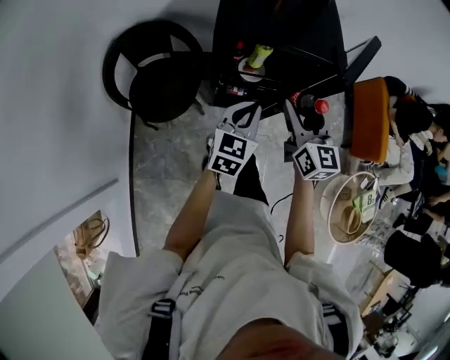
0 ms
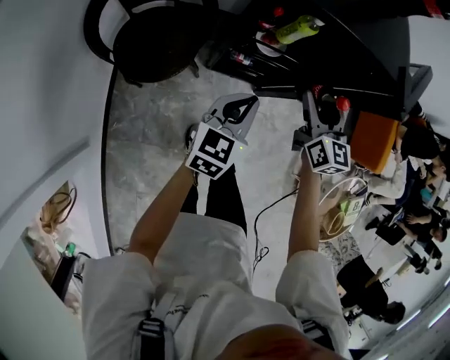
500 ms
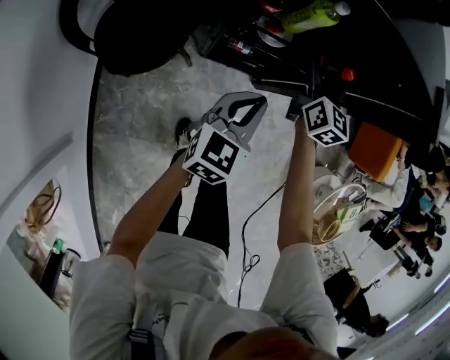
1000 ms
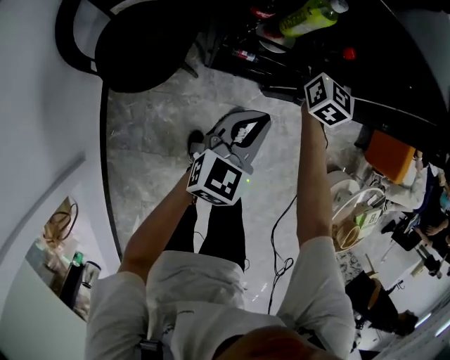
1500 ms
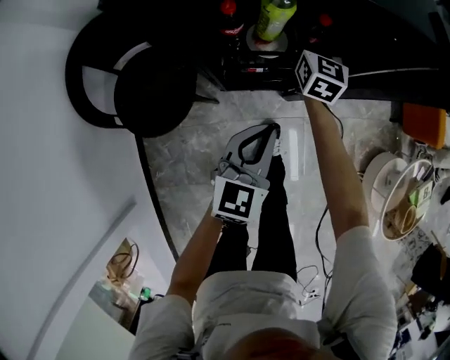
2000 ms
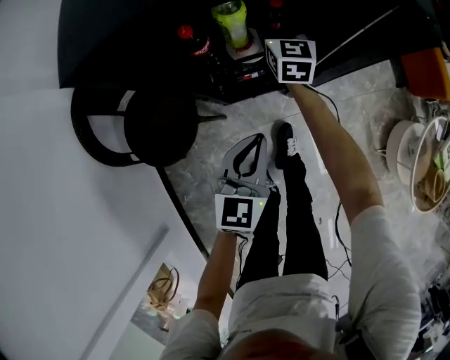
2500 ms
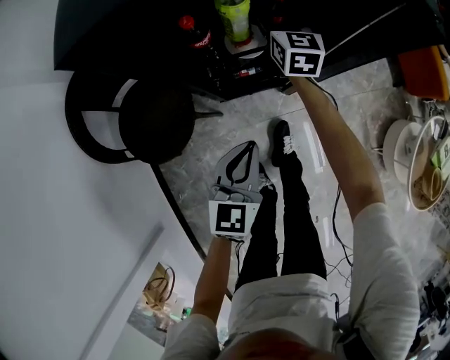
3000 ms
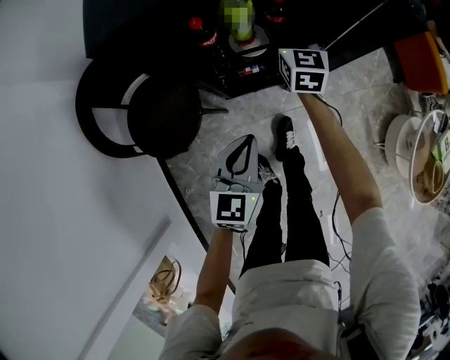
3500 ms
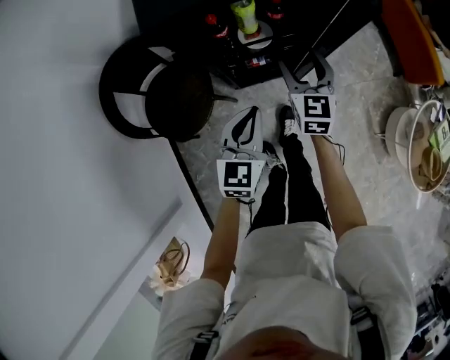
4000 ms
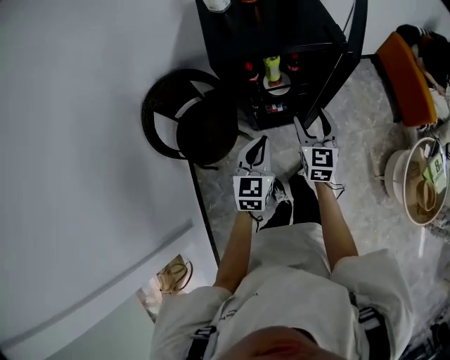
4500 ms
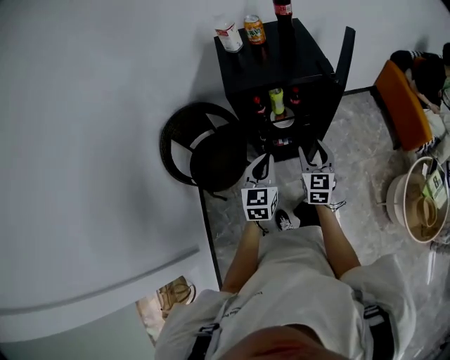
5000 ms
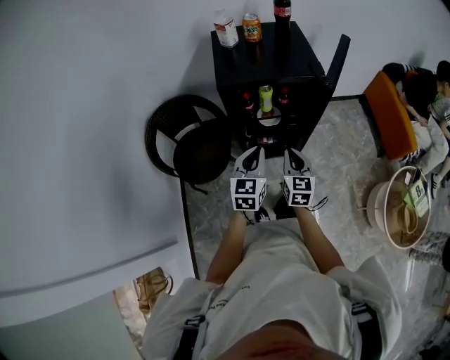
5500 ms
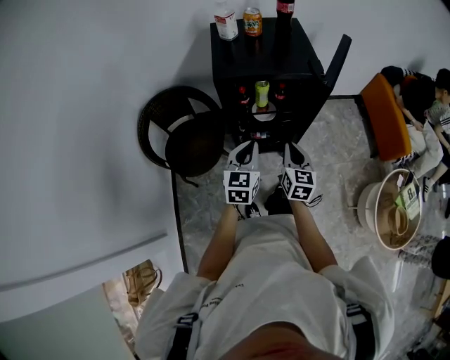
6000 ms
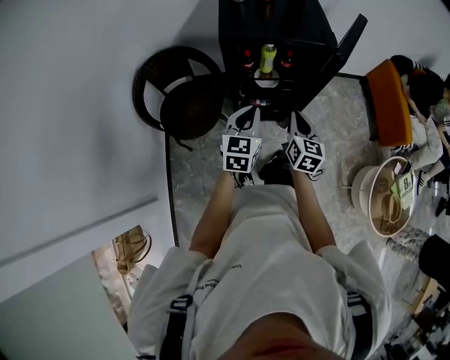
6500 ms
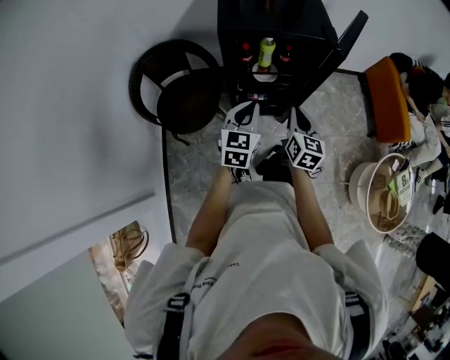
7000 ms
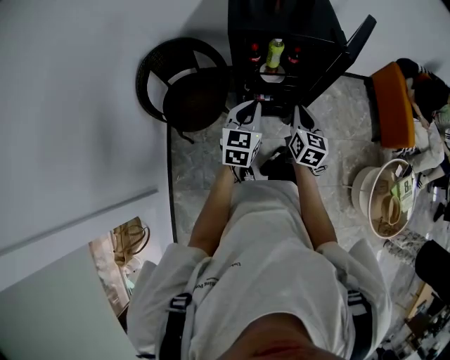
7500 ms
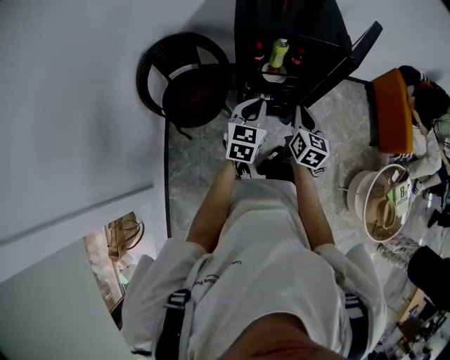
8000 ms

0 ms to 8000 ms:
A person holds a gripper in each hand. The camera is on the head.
0 ms to 2000 ms: The left gripper heads downward, covering some 20 cm; the right gripper moves downward and forward, approximately 40 cm, and rotates some 20 degrees.
2000 ms to 4000 ms: The right gripper goes approximately 20 cm backward and upward, while the left gripper is displaced upward and backward by about 10 cm.
4000 ms to 6000 ms: The left gripper shifts roughly 15 cm upward; the right gripper shifts about 15 cm backward and upward, and closes up.
6000 ms to 8000 ms: There are only small adjustments of the grippers.

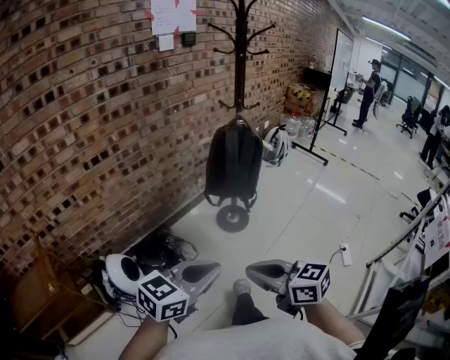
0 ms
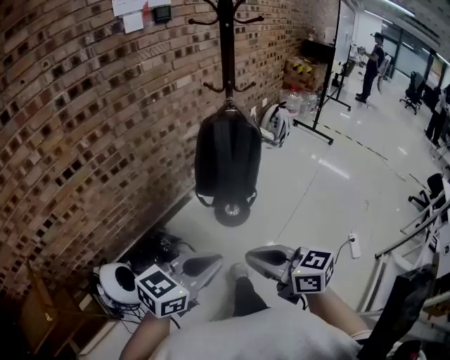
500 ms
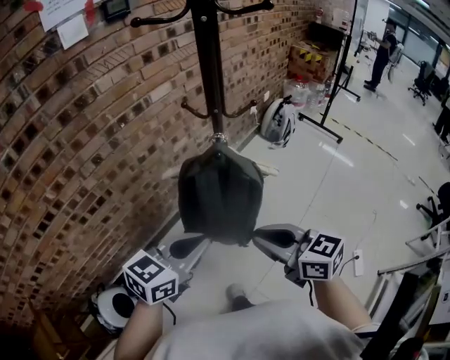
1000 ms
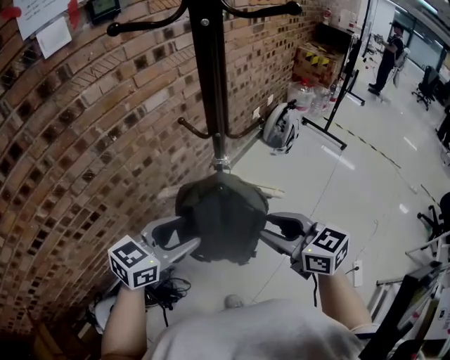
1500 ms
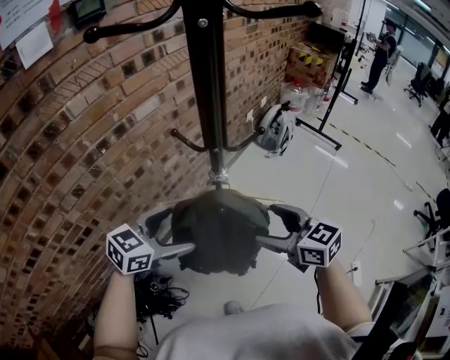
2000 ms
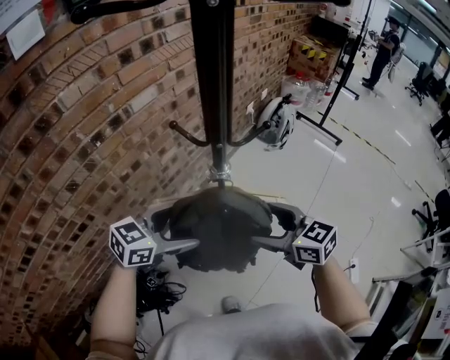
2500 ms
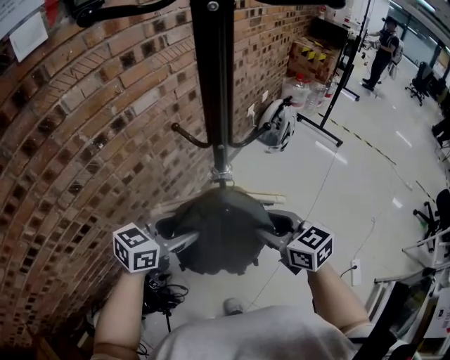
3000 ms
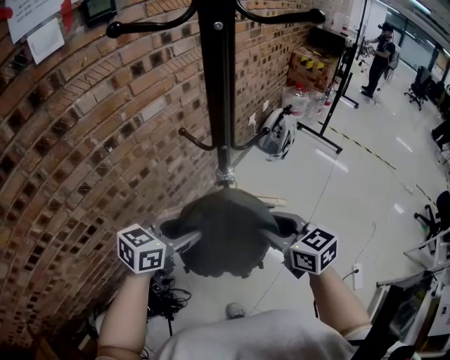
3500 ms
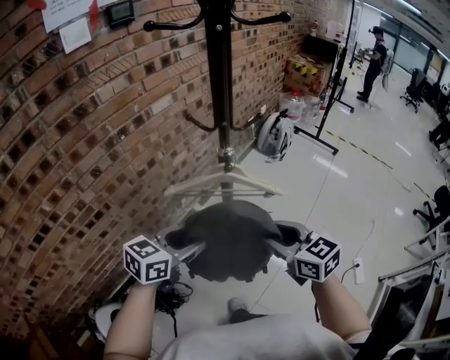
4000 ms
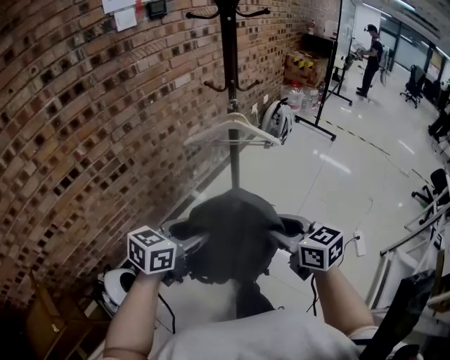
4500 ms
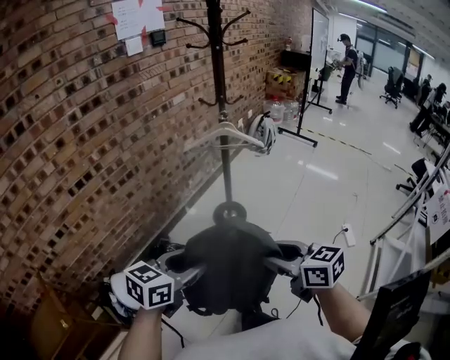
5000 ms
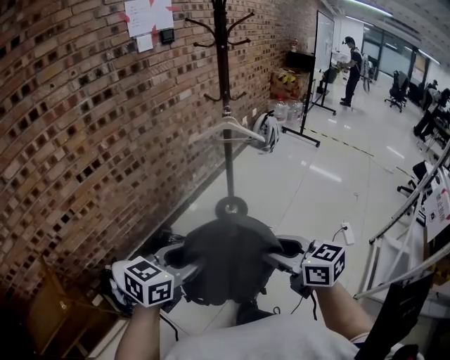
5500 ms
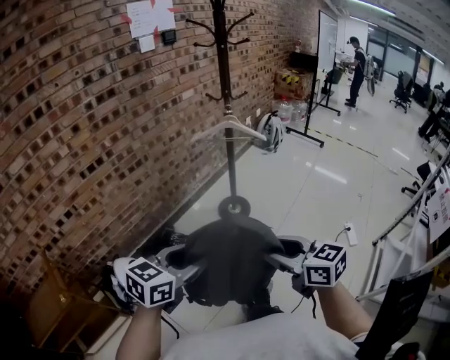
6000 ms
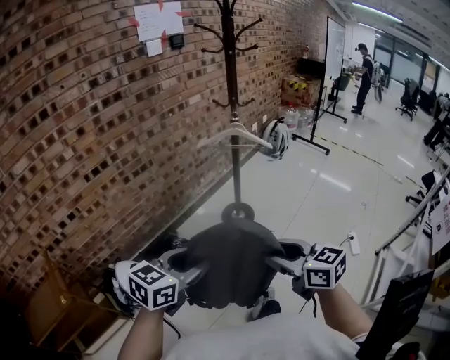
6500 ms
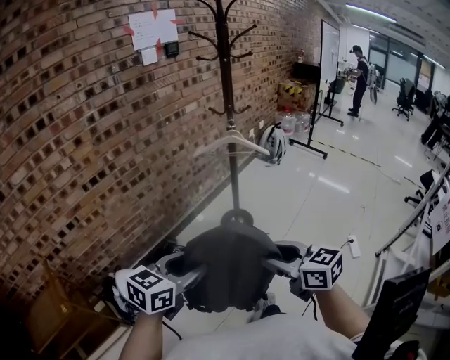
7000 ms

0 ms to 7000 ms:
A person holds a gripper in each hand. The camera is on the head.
0 ms to 2000 ms: The two grippers travel together, forward, roughly 70 cm. The left gripper opens. The right gripper opens up.
2000 ms to 3500 ms: The right gripper closes up. Meanwhile the left gripper closes up.
3500 ms to 5000 ms: The pair of grippers is taken backward, approximately 50 cm.

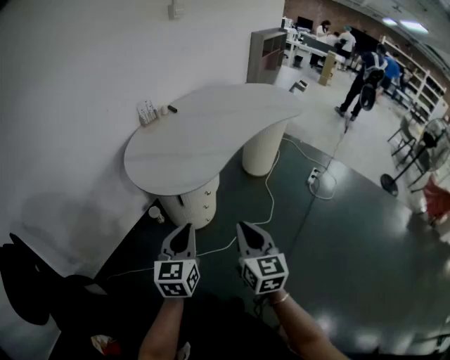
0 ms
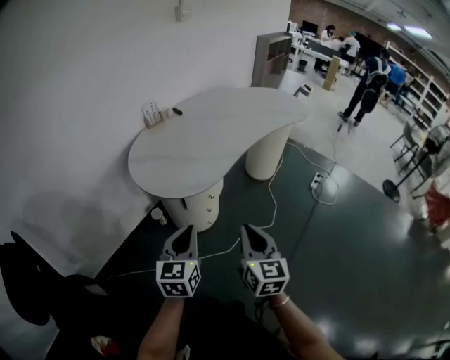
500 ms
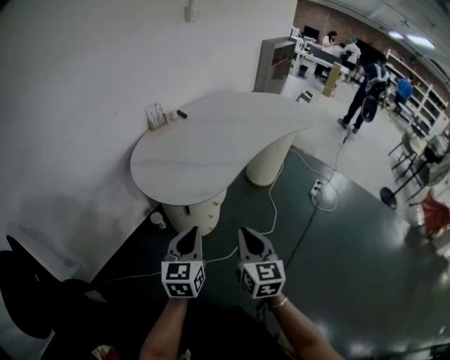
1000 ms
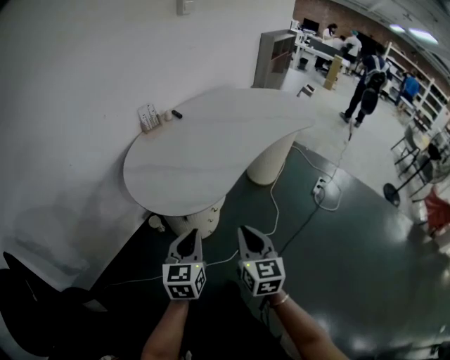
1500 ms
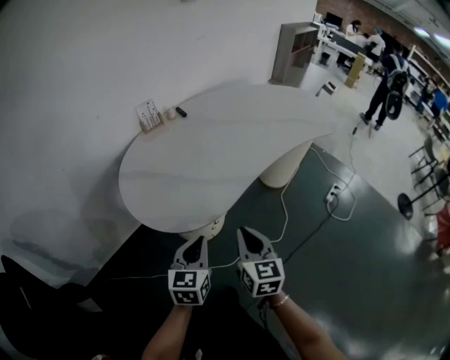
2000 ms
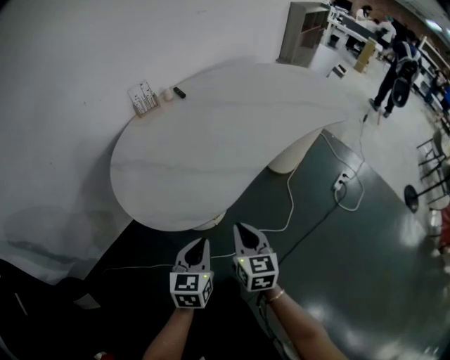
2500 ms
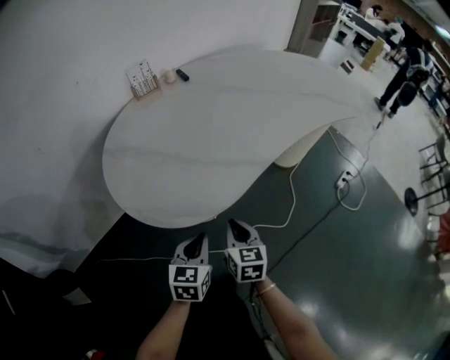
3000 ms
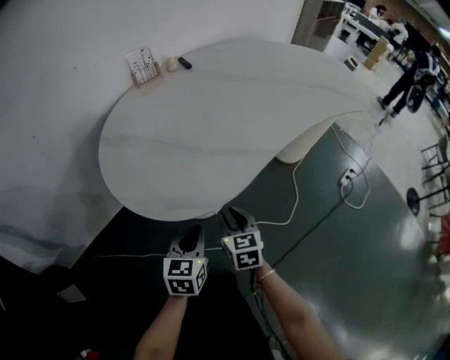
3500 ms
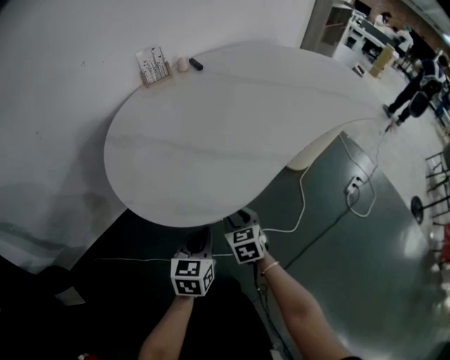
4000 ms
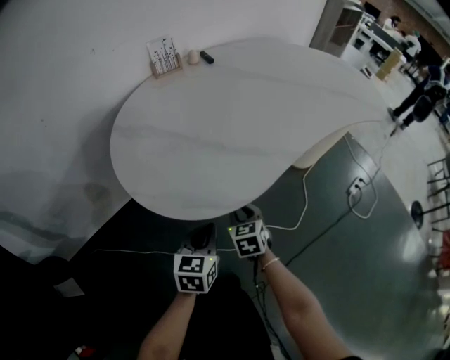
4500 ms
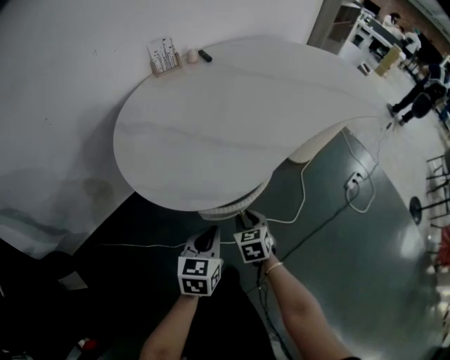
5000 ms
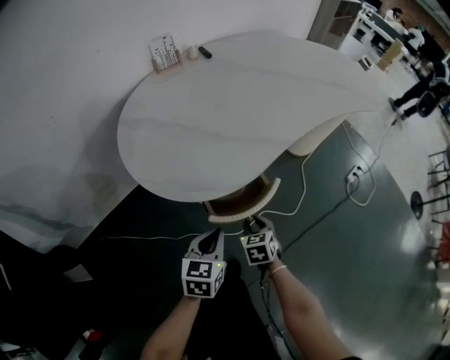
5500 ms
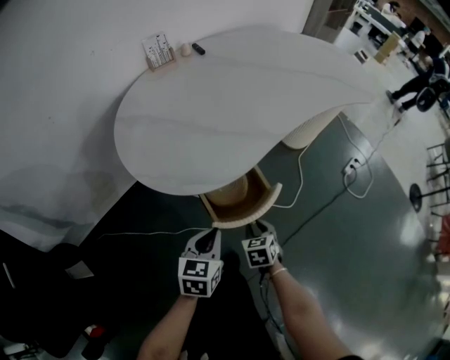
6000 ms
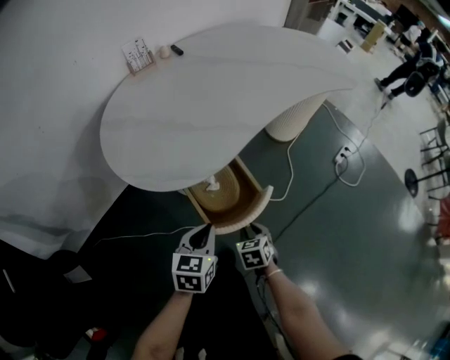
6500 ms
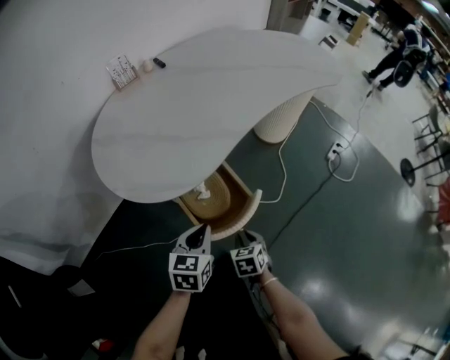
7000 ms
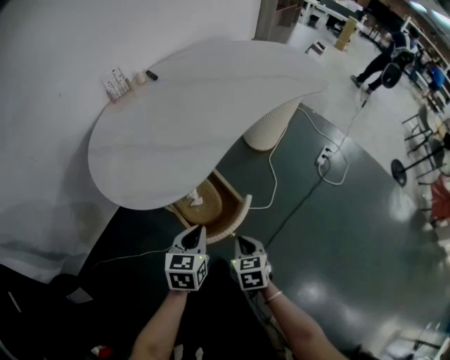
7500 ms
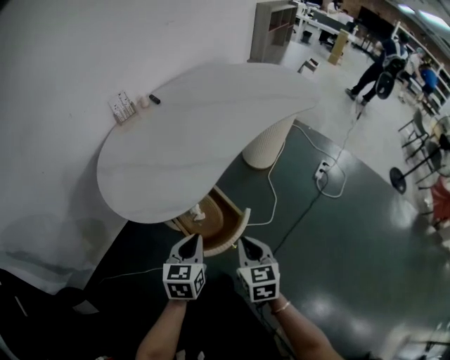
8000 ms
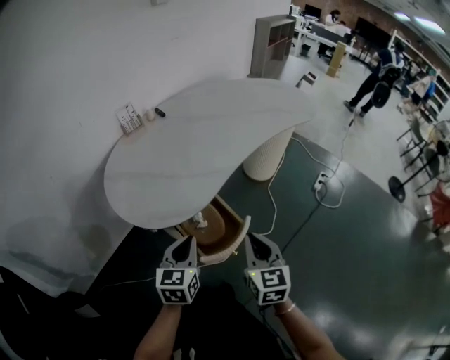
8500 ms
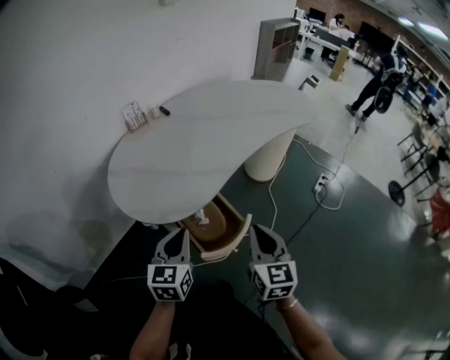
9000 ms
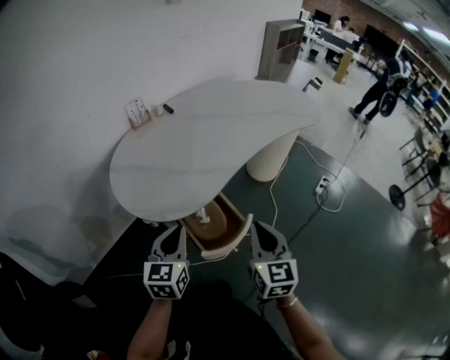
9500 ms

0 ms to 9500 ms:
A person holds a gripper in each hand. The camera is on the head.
0 ms to 2000 ms: The left gripper shifts about 20 cm forward and downward; the right gripper is displaced forward by roughly 20 cm.
2000 ms to 4000 ms: Both grippers travel together downward, some 25 cm. The right gripper turns by about 30 degrees, and opens its fingers.
4000 ms to 5500 ms: The left gripper travels backward by about 10 cm; the right gripper shifts about 10 cm backward and to the right.
5500 ms to 7500 ms: The right gripper moves upward, backward and to the right, about 15 cm, and closes, while the left gripper moves to the right, approximately 5 cm.
7500 ms to 9500 ms: The left gripper heads upward and to the left, covering some 15 cm, while the right gripper shifts some 25 cm upward, and tilts its fingers about 40 degrees upward.

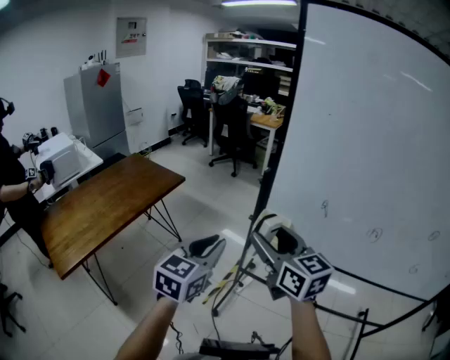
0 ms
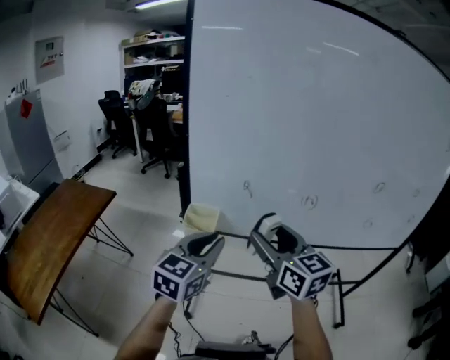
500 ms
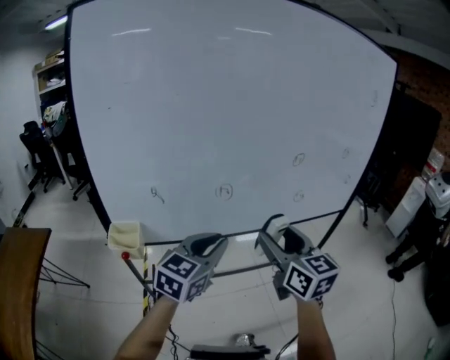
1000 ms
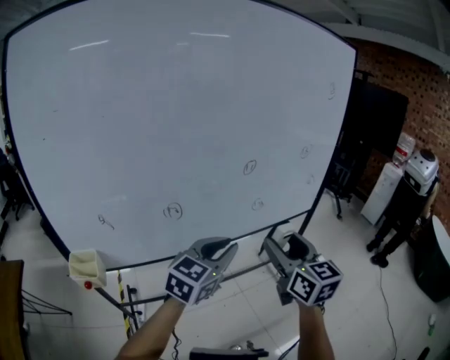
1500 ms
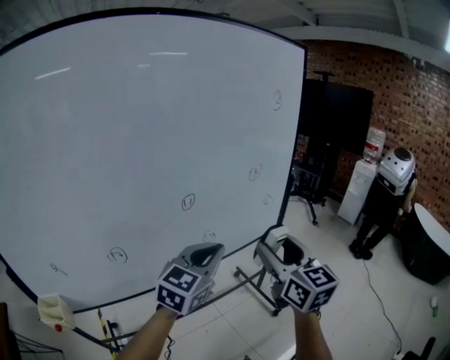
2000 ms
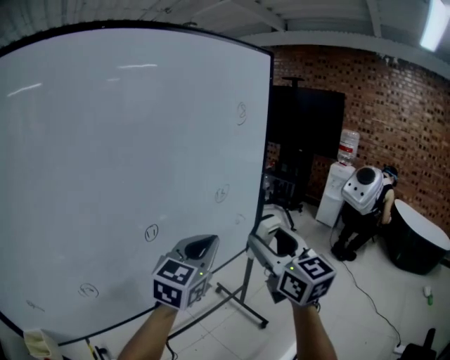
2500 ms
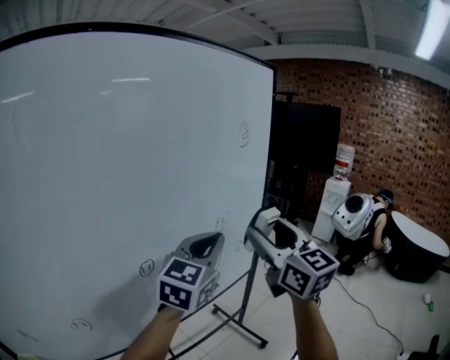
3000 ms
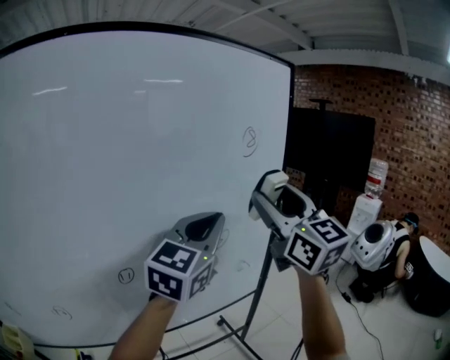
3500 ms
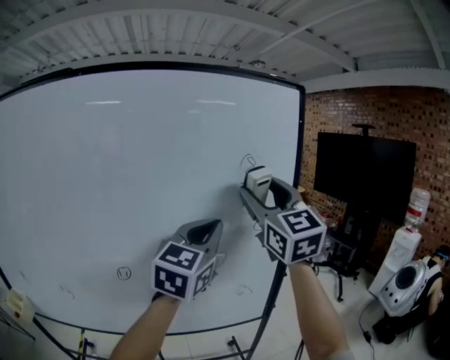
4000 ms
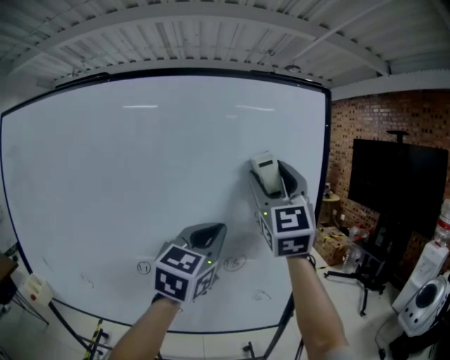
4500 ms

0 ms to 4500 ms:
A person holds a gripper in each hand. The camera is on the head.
0 ms to 2000 ms: The two grippers travel together, some 70 cm. The right gripper turns by some 70 degrees. Meanwhile the left gripper turns by roughly 60 degrees.
2000 ms to 4500 ms: The left gripper changes place by roughly 30 cm, and changes its angle by some 40 degrees; the right gripper heads upward, covering approximately 30 cm, and swivels approximately 40 degrees.
